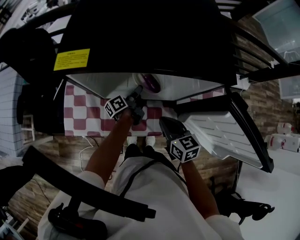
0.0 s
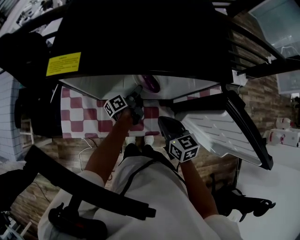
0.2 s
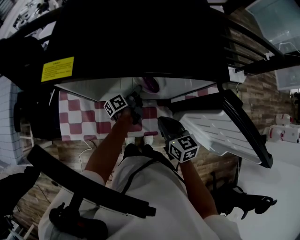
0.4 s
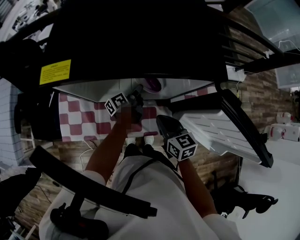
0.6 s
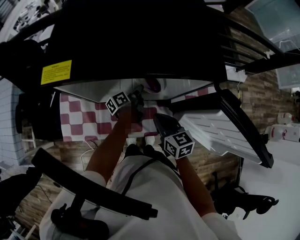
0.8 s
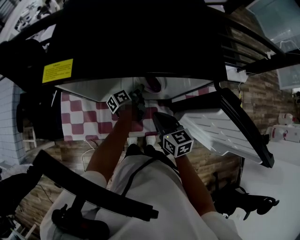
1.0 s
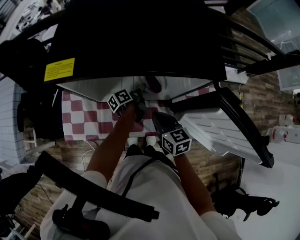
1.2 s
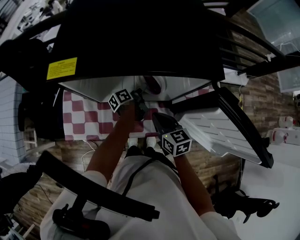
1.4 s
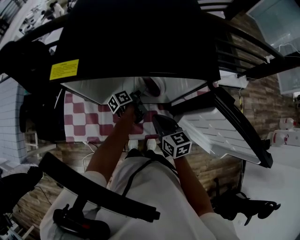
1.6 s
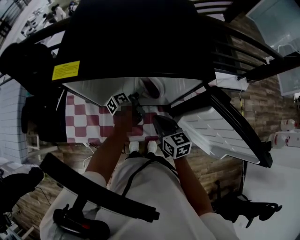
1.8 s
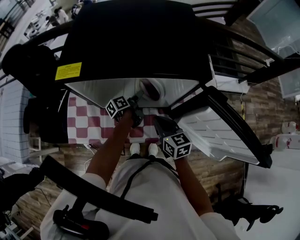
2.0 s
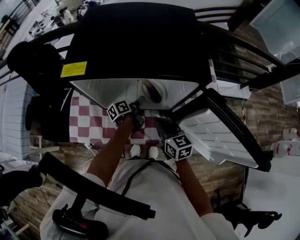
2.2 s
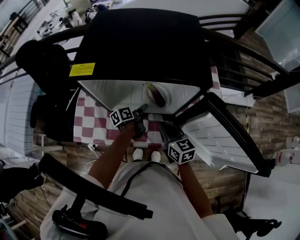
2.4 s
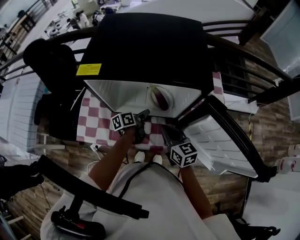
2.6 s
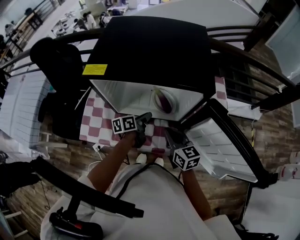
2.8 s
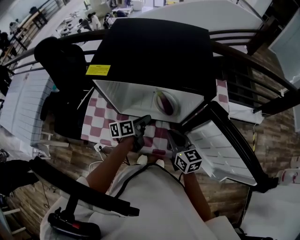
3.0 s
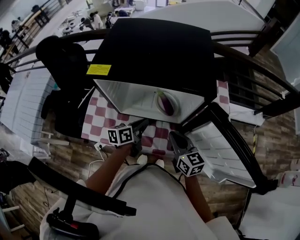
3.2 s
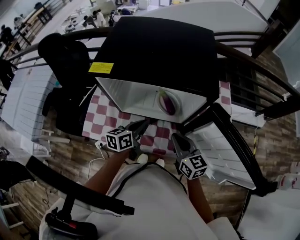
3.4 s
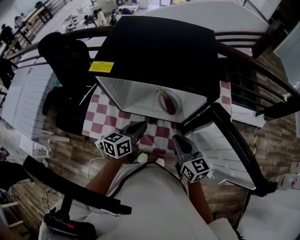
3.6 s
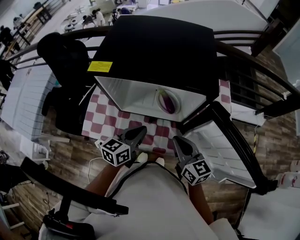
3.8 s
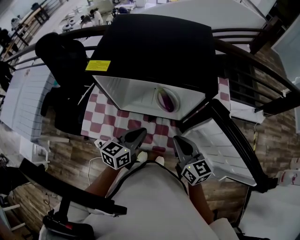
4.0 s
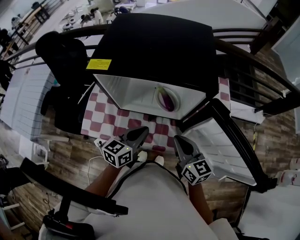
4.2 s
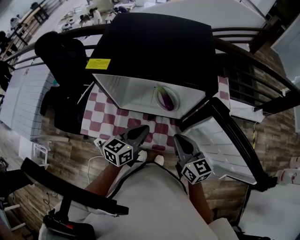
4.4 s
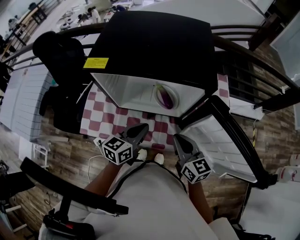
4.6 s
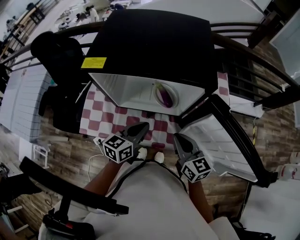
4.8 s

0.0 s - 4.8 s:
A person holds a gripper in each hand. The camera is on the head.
1.6 s - 3.2 s: The right gripper moves upward, about 5 cm.

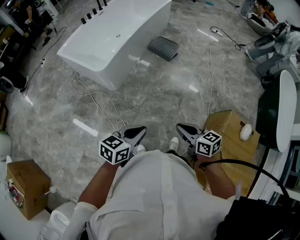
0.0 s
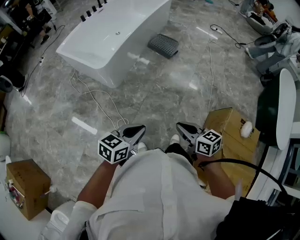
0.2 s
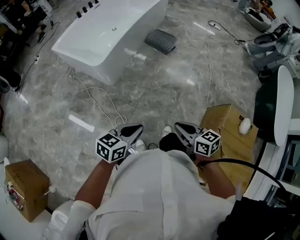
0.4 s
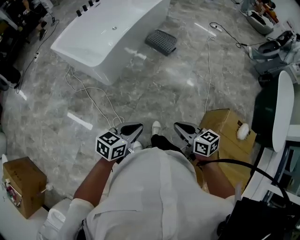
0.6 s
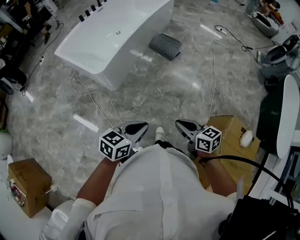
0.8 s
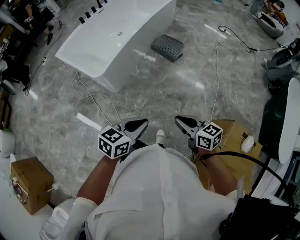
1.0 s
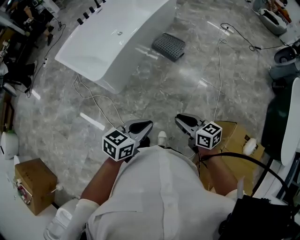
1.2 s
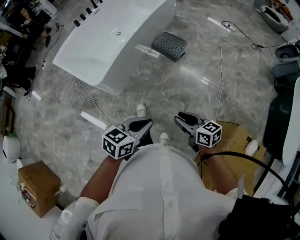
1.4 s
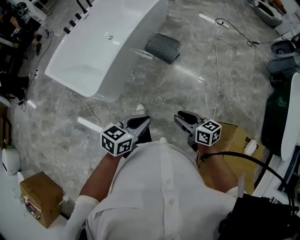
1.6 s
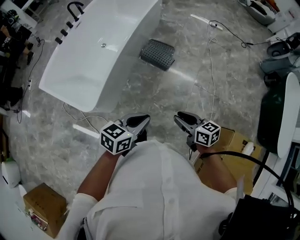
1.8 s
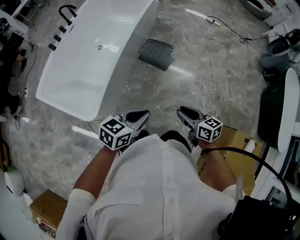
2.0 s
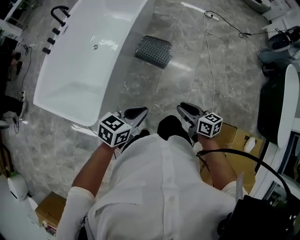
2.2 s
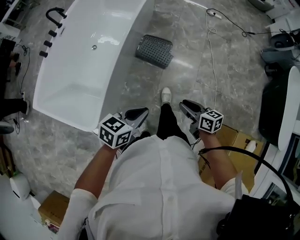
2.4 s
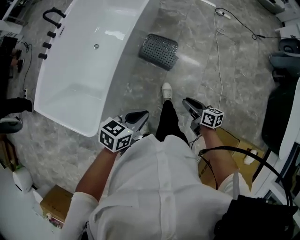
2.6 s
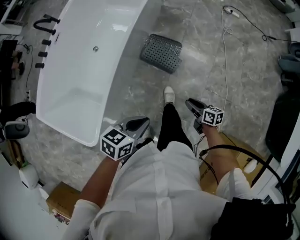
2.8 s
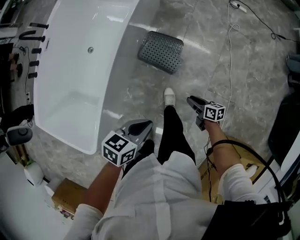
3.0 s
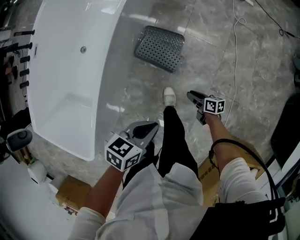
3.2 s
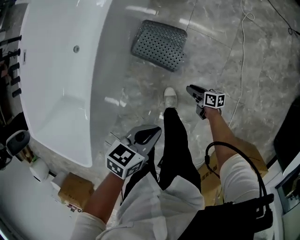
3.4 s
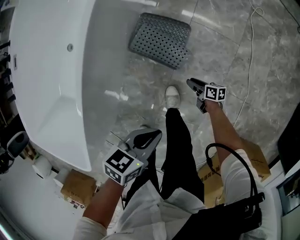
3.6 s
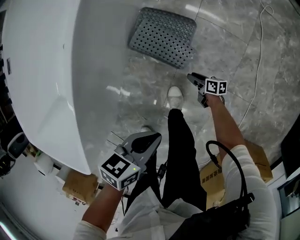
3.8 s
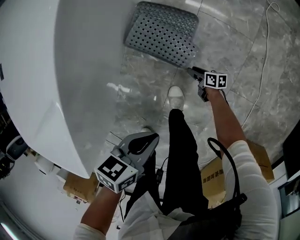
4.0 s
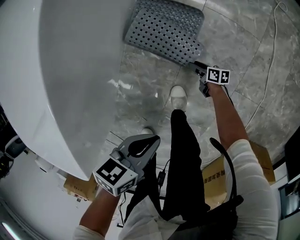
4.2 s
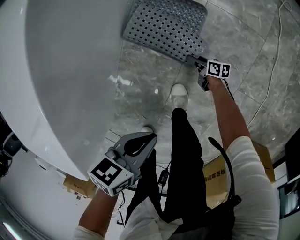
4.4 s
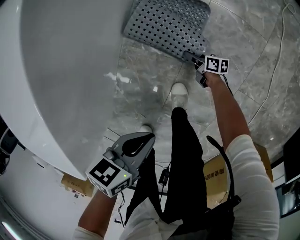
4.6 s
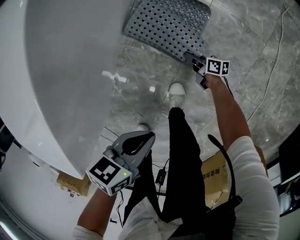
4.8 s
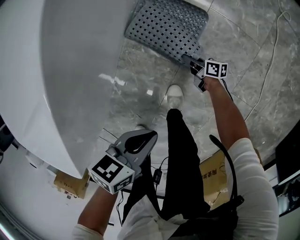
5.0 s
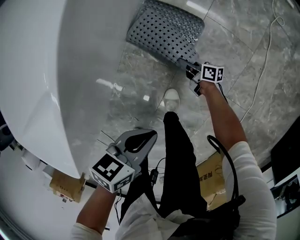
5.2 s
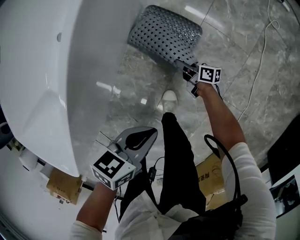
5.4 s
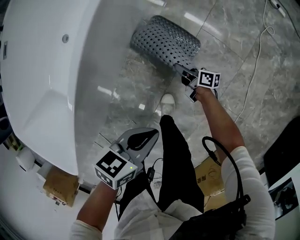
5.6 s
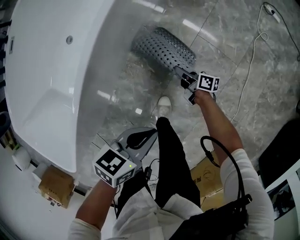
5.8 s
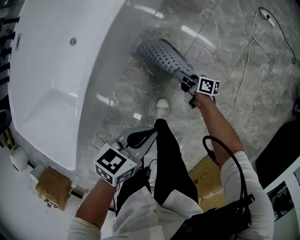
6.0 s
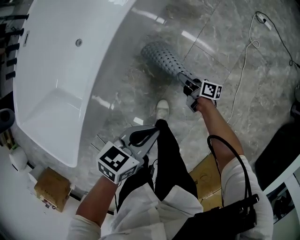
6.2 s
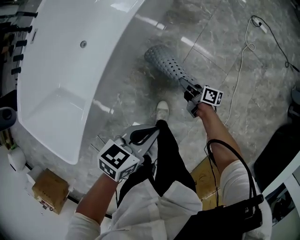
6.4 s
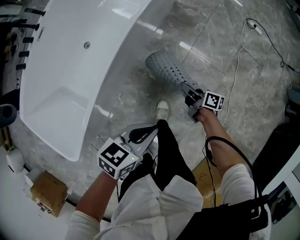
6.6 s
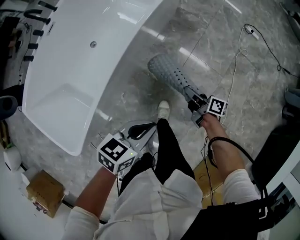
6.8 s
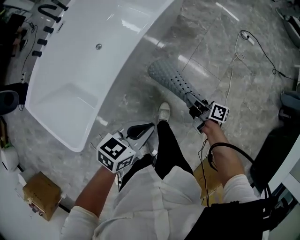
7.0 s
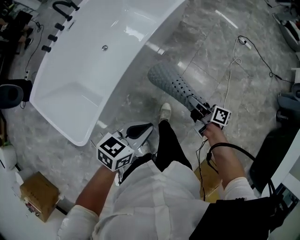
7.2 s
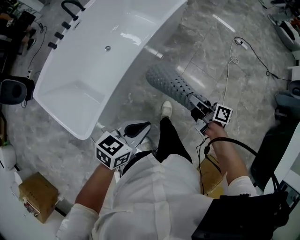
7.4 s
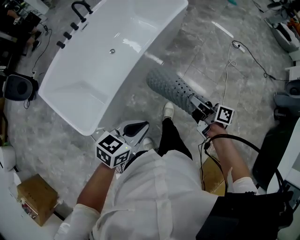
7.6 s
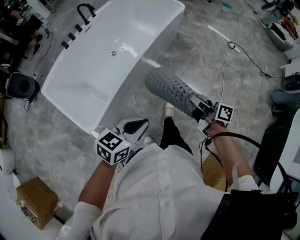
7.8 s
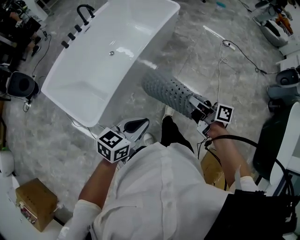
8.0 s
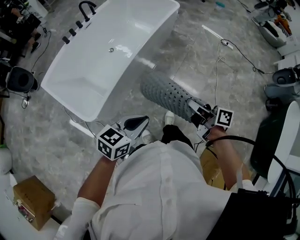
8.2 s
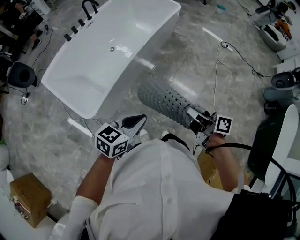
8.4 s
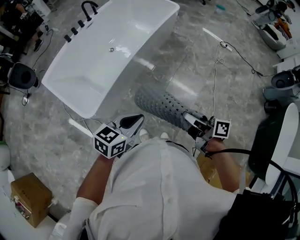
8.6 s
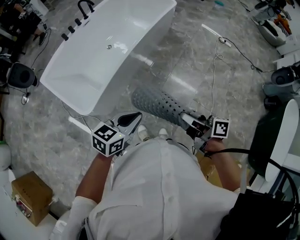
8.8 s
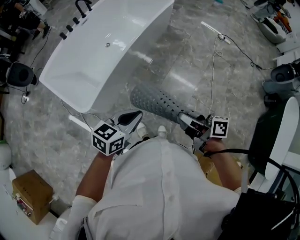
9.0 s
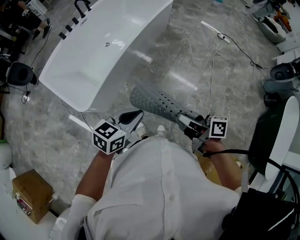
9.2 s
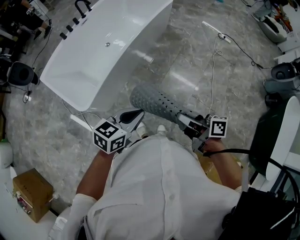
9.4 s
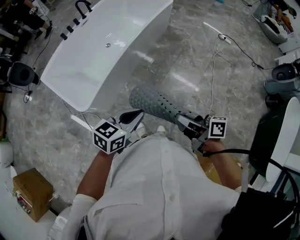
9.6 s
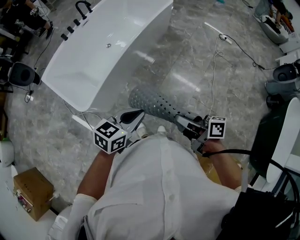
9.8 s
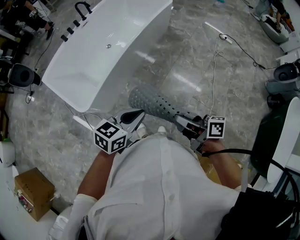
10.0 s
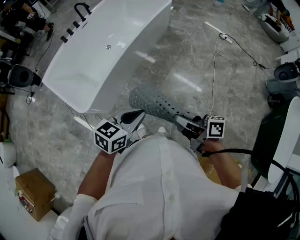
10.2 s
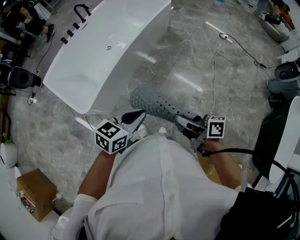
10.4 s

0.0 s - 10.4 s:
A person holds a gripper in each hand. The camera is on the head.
0.0 s - 1.4 s: The grippers both shift forward by roughly 20 cm. The right gripper opens its fingers.
1.4 s - 3.0 s: Both grippers are carried forward, approximately 50 cm. The right gripper goes about 30 cm downward, and swivels some 30 degrees.
3.0 s - 4.4 s: The left gripper heads downward, covering about 30 cm. Meanwhile the right gripper travels downward by some 50 cm.
4.4 s - 6.0 s: The right gripper goes approximately 30 cm upward, and closes its fingers; the left gripper shifts approximately 15 cm upward.
6.0 s - 7.4 s: The left gripper travels upward, backward and to the left by roughly 35 cm, and swivels roughly 20 degrees; the right gripper moves upward and backward, about 50 cm.
7.4 s - 9.0 s: The left gripper shifts about 20 cm backward and upward; the right gripper travels backward and upward by some 35 cm.
9.0 s - 10.4 s: The left gripper is displaced to the right by approximately 5 cm.

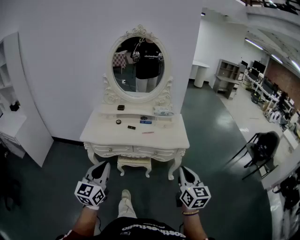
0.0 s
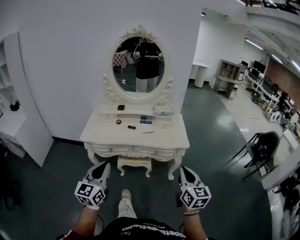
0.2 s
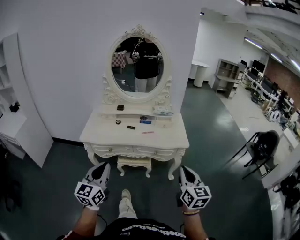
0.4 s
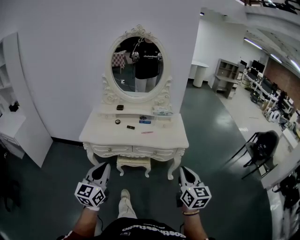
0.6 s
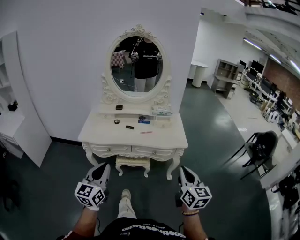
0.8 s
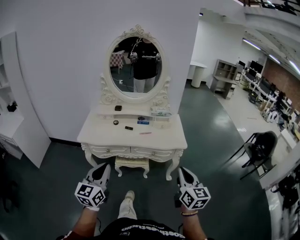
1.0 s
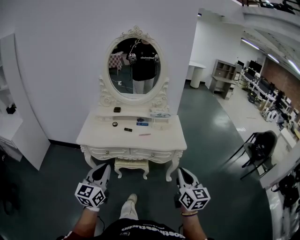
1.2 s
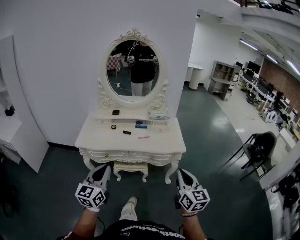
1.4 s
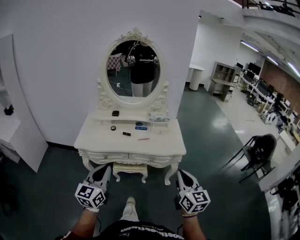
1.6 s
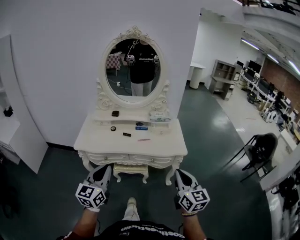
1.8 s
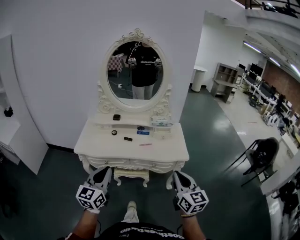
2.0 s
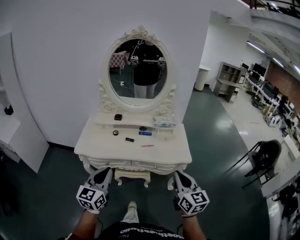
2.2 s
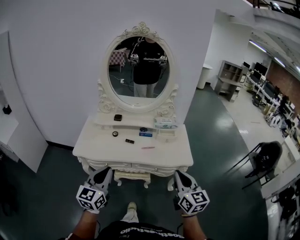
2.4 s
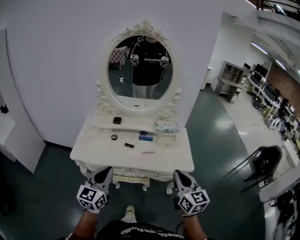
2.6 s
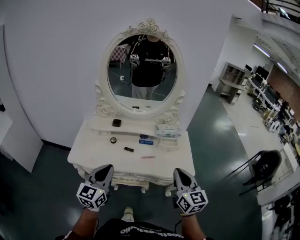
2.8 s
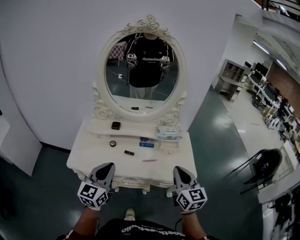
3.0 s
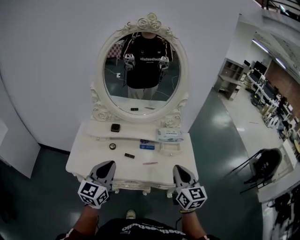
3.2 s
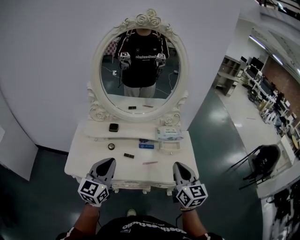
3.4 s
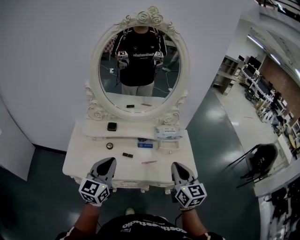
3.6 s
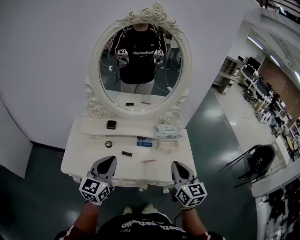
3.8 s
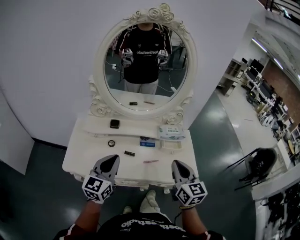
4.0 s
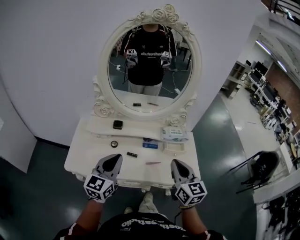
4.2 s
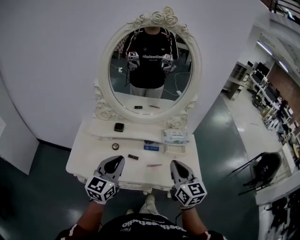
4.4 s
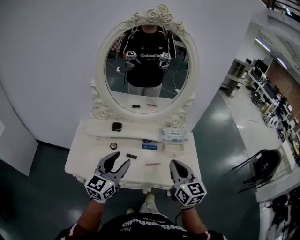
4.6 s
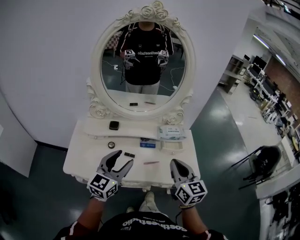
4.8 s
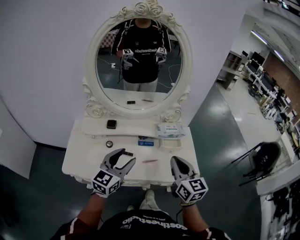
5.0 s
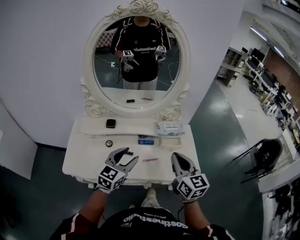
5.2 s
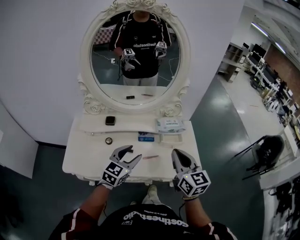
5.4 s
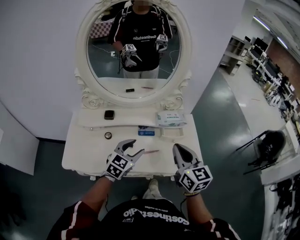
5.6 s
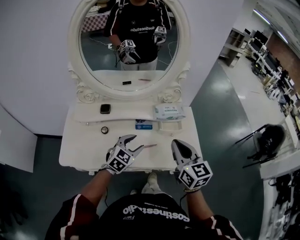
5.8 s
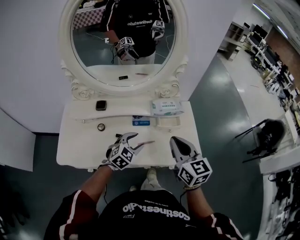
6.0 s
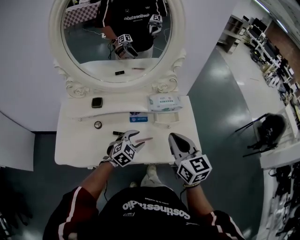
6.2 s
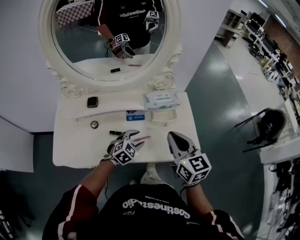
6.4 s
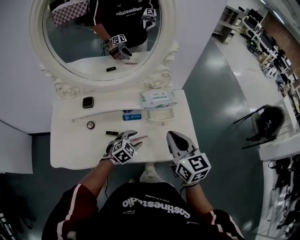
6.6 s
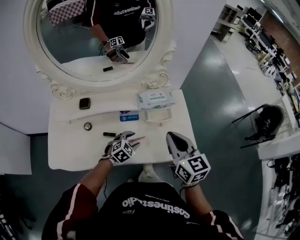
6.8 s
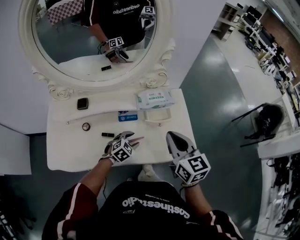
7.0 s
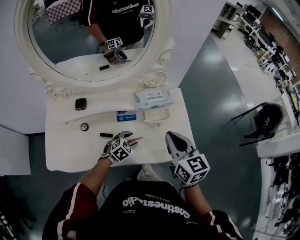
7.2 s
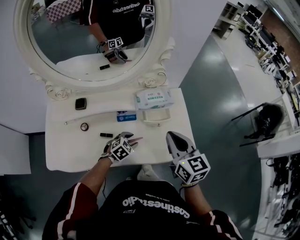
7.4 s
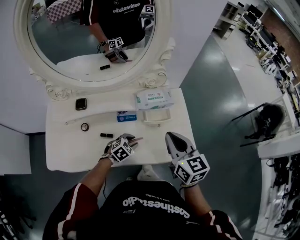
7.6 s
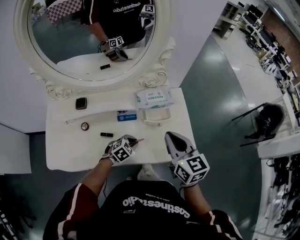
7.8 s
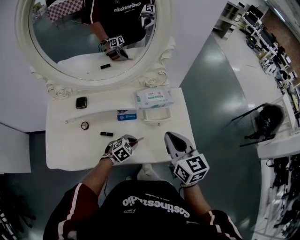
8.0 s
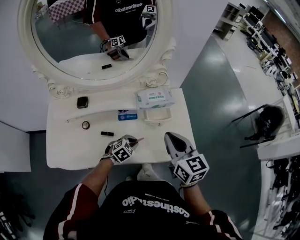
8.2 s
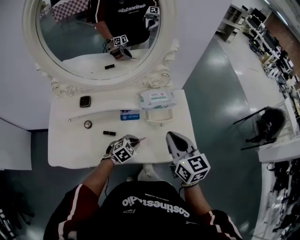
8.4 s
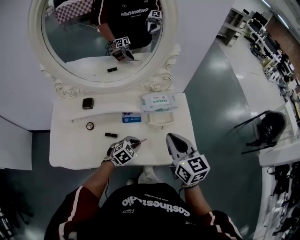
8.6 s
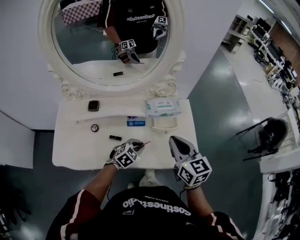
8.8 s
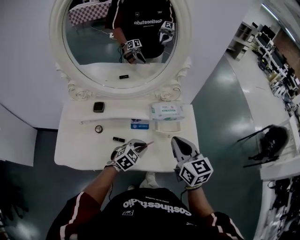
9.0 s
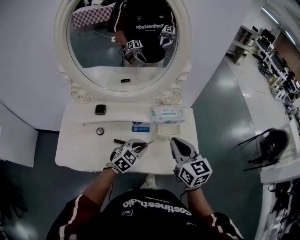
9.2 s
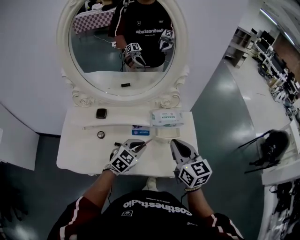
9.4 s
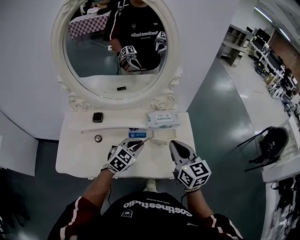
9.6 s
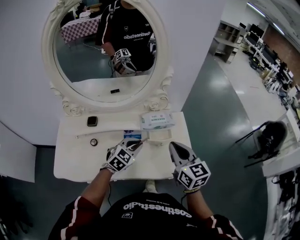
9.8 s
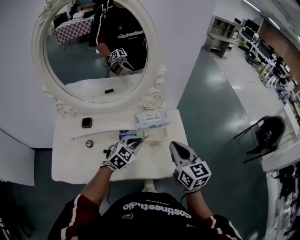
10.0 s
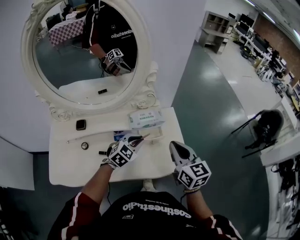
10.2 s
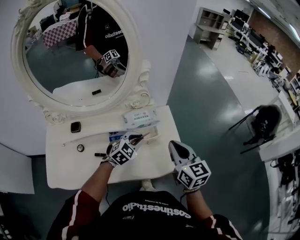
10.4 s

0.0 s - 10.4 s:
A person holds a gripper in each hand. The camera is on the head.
0.0 s - 1.4 s: There are only small adjustments of the grippers.
1.4 s - 3.0 s: The grippers both shift forward by some 30 cm.
3.0 s - 4.4 s: The left gripper moves forward, about 10 cm; the right gripper is displaced forward and to the left by about 10 cm.
4.4 s - 6.0 s: The right gripper is displaced to the right and forward by roughly 10 cm. Meanwhile the left gripper travels downward, to the right and forward by approximately 30 cm, angles its fingers downward, by some 30 degrees, and opens its fingers.
6.0 s - 7.4 s: The right gripper shifts some 5 cm forward, while the left gripper travels downward by some 15 cm, and turns by about 20 degrees.
7.4 s - 9.0 s: The left gripper goes roughly 10 cm upward, and closes.
9.0 s - 10.4 s: The left gripper goes about 15 cm forward, to the right and upward. The right gripper shifts approximately 10 cm to the right.
